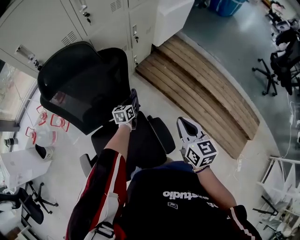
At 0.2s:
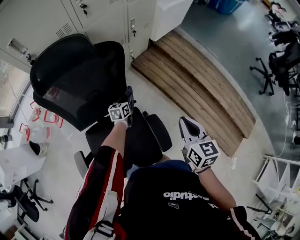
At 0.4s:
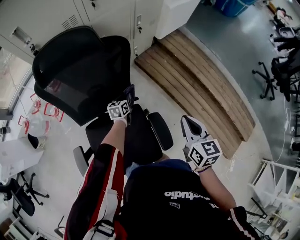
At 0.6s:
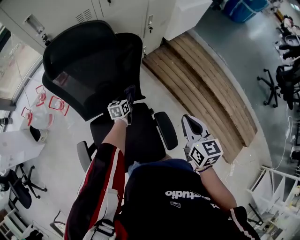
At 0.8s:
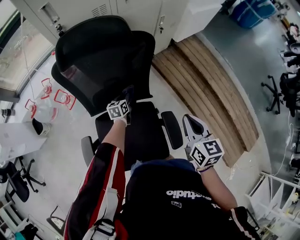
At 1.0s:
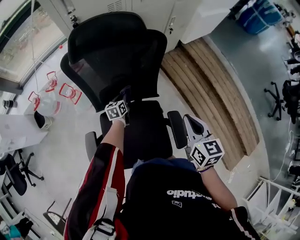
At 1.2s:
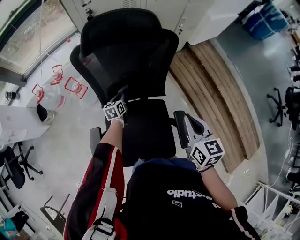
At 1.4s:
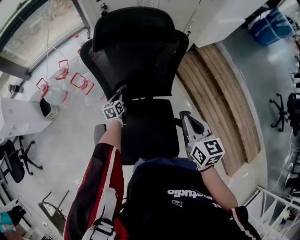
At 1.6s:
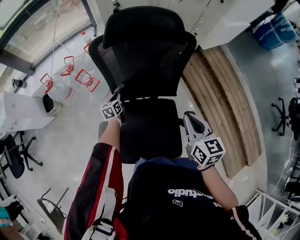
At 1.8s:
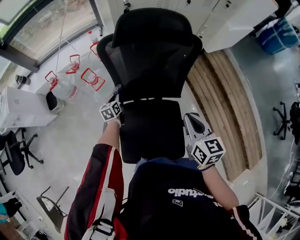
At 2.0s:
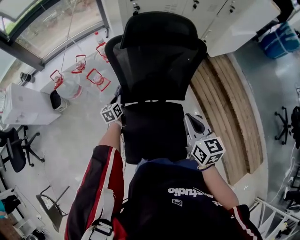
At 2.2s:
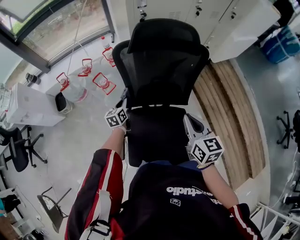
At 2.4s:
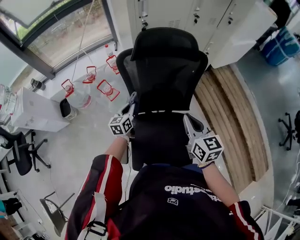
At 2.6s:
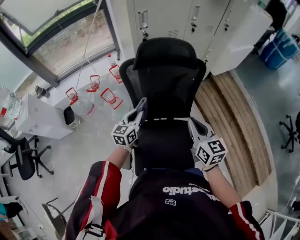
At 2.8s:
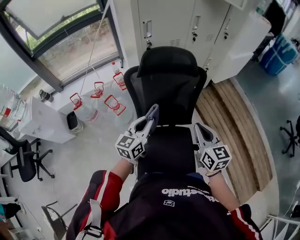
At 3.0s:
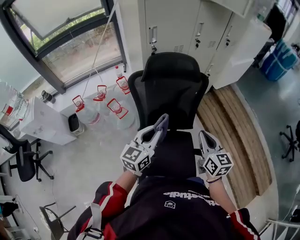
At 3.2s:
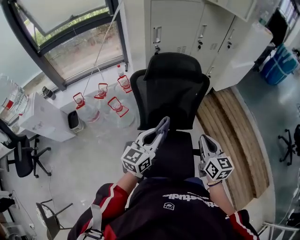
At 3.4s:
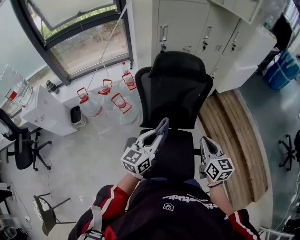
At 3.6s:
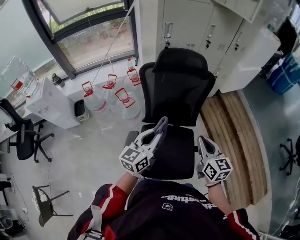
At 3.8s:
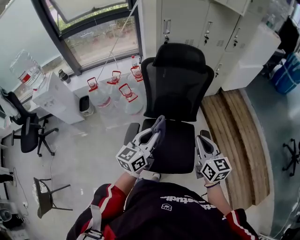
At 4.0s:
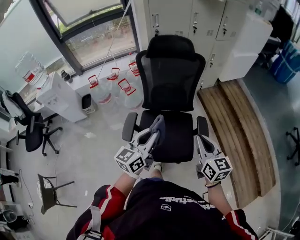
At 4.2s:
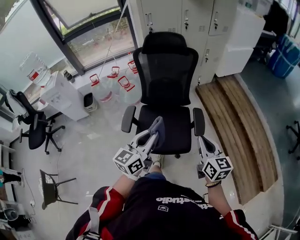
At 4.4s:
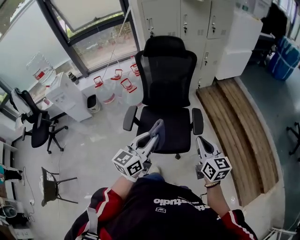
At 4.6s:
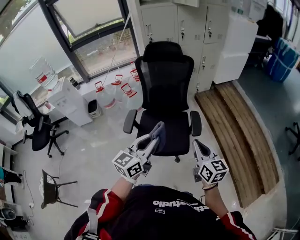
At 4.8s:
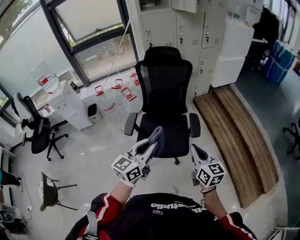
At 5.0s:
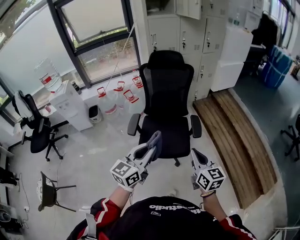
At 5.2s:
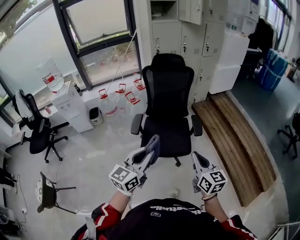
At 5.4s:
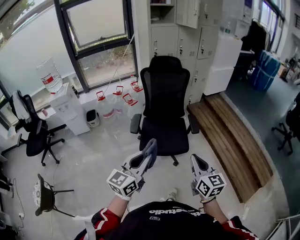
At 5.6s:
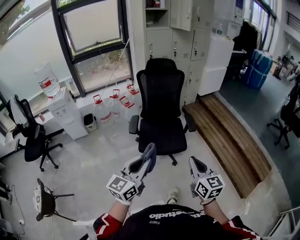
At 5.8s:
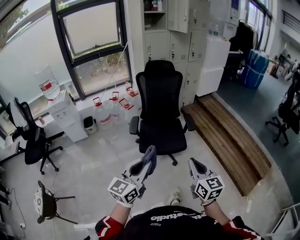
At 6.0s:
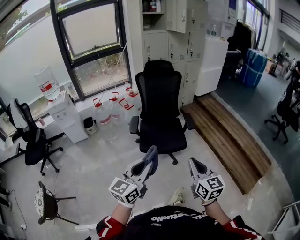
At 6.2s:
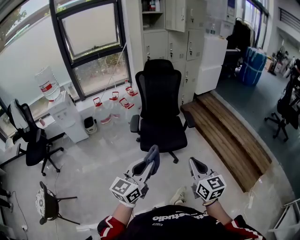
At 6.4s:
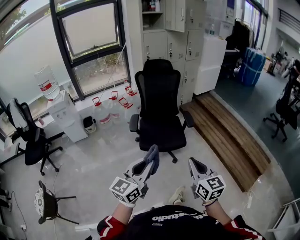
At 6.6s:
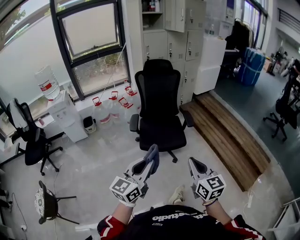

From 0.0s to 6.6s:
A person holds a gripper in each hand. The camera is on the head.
From 0.0s to 1.6s: The right gripper ends up about 20 cm from where it was. Meanwhile the left gripper changes place by approximately 40 cm, and rotates roughly 30 degrees.
From 1.6s to 3.2s: The left gripper is displaced upward and backward by roughly 40 cm, and tips its fingers upward by some 30 degrees, while the right gripper heads upward and backward, covering roughly 10 cm.
From 3.2s to 5.0s: The pair of grippers is taken backward, some 50 cm.
From 5.0s to 6.6s: Both grippers move backward, roughly 30 cm.

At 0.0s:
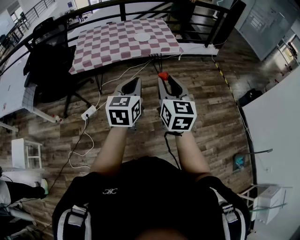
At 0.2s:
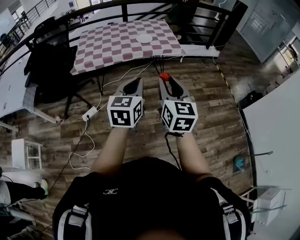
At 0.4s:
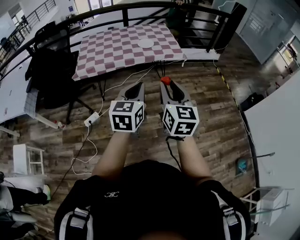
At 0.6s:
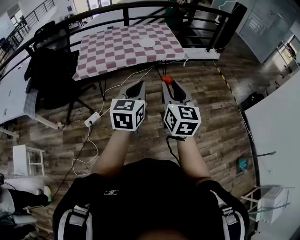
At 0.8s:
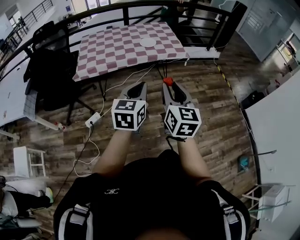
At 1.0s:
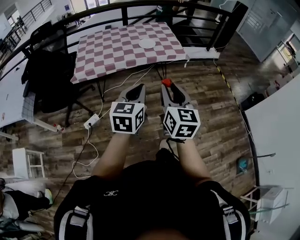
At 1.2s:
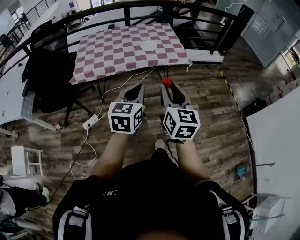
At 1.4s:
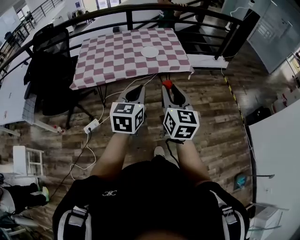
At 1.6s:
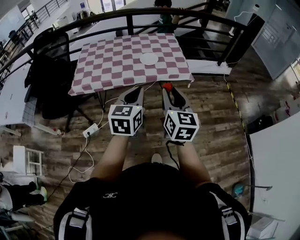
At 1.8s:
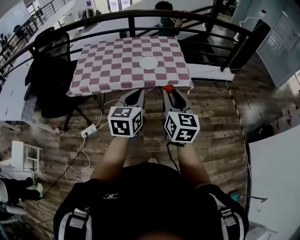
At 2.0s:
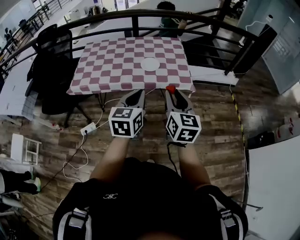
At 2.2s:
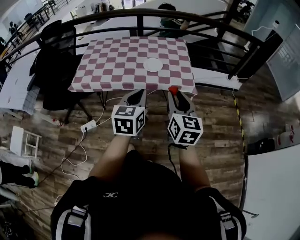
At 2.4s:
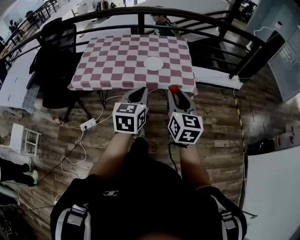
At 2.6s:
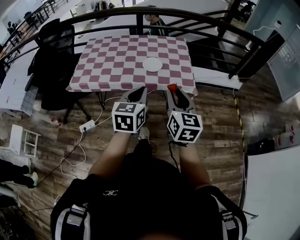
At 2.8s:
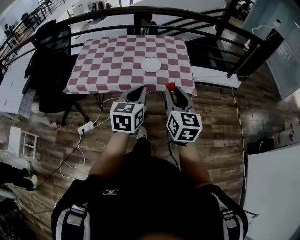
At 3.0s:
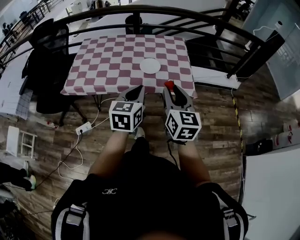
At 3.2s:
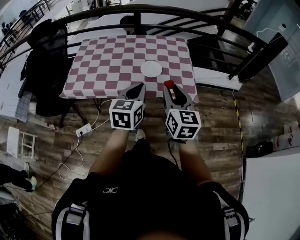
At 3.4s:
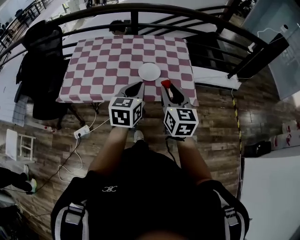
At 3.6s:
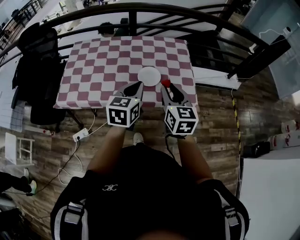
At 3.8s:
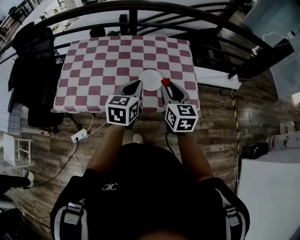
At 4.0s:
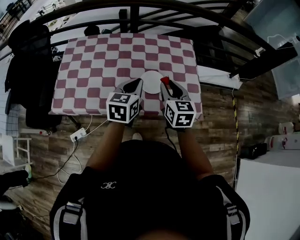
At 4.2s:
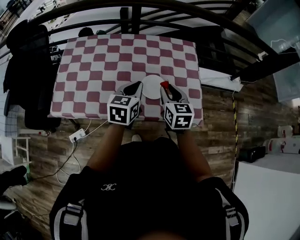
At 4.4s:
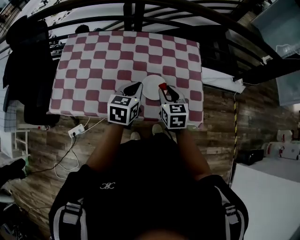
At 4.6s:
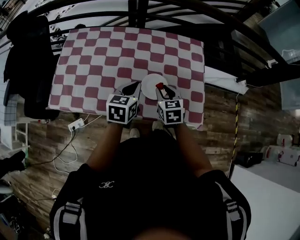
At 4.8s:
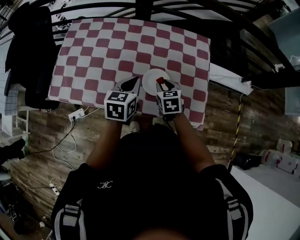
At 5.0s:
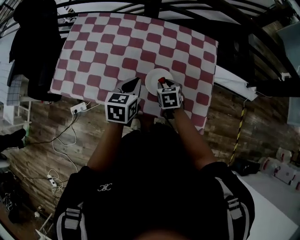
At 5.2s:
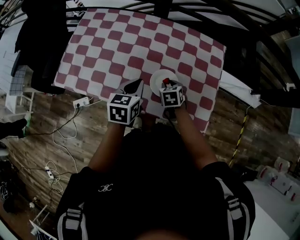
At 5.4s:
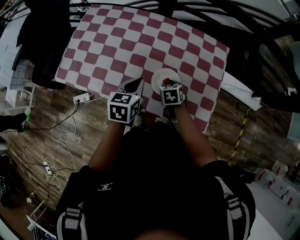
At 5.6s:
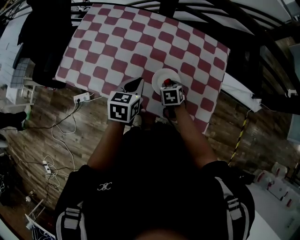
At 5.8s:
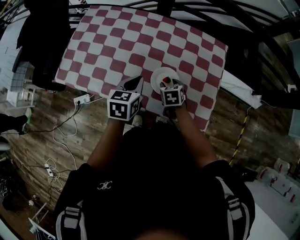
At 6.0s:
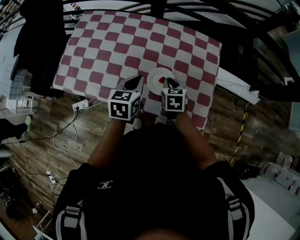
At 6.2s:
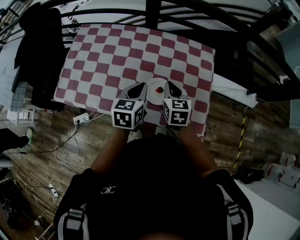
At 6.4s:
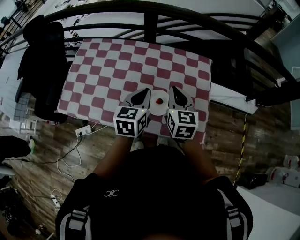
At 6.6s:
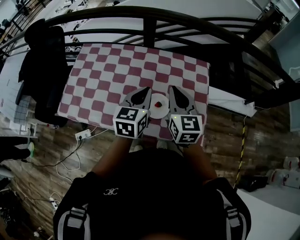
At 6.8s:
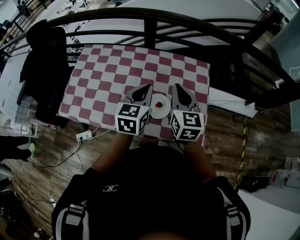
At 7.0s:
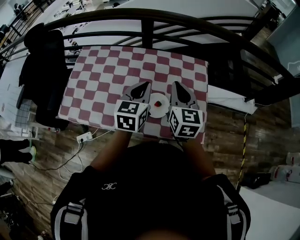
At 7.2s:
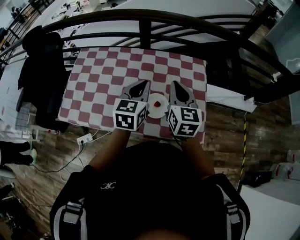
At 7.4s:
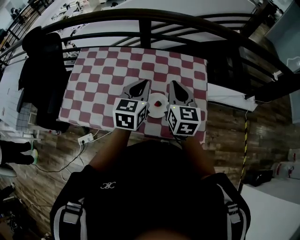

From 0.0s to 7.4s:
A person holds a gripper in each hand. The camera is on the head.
From 0.0s to 1.4s: The two grippers go about 20 cm forward.
From 1.4s to 3.0s: Both grippers travel together forward, some 20 cm.
From 3.0s to 4.4s: The right gripper moves forward and downward, approximately 35 cm, and rotates approximately 30 degrees; the left gripper heads forward, covering roughly 30 cm.
From 4.4s to 6.0s: The right gripper shifts about 10 cm downward and forward, and opens and closes again.
From 6.0s to 7.4s: The right gripper is displaced upward by some 20 cm, and points its fingers roughly 30 degrees further upward, while the left gripper goes about 10 cm upward.

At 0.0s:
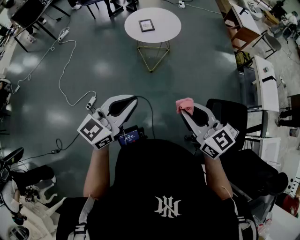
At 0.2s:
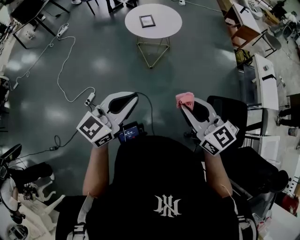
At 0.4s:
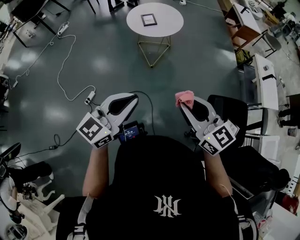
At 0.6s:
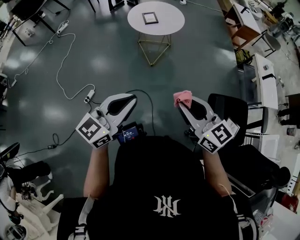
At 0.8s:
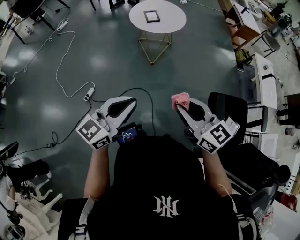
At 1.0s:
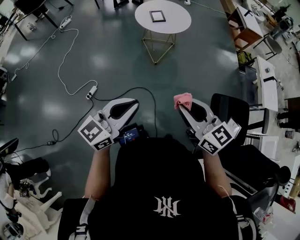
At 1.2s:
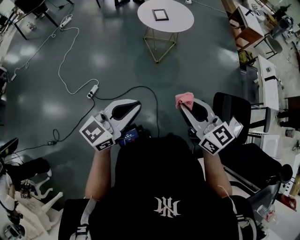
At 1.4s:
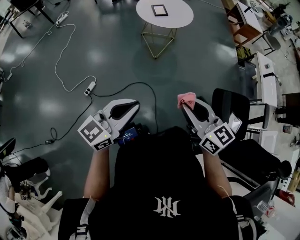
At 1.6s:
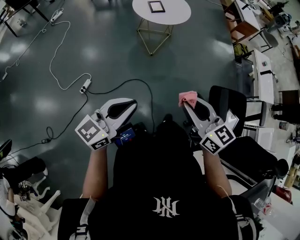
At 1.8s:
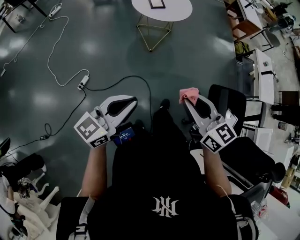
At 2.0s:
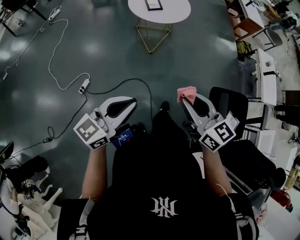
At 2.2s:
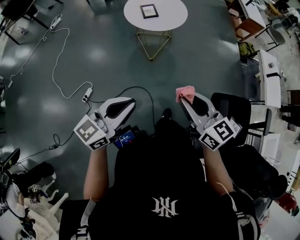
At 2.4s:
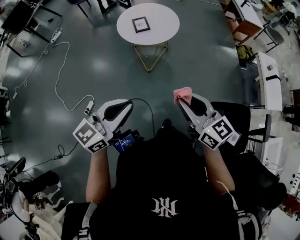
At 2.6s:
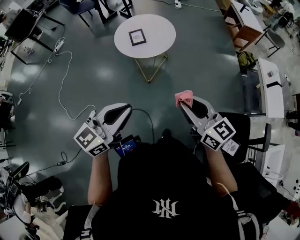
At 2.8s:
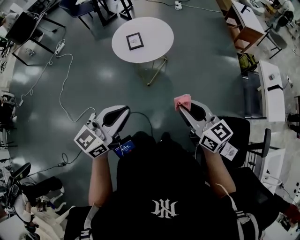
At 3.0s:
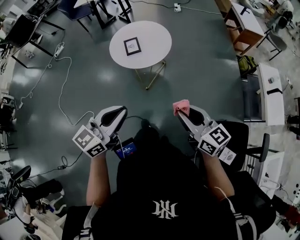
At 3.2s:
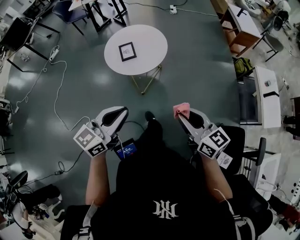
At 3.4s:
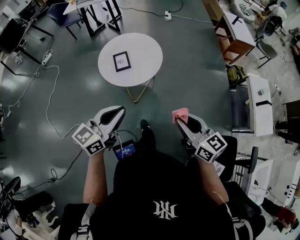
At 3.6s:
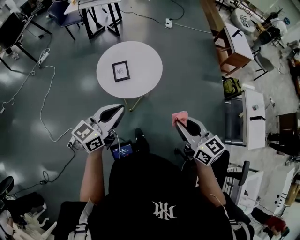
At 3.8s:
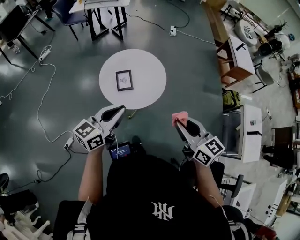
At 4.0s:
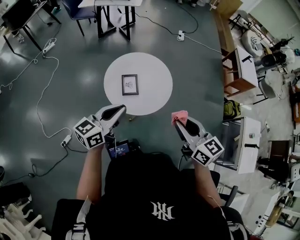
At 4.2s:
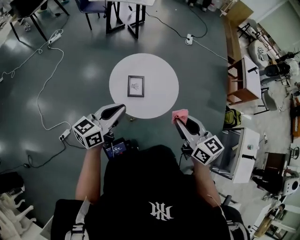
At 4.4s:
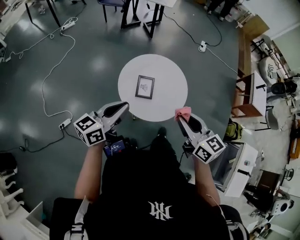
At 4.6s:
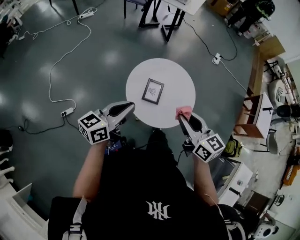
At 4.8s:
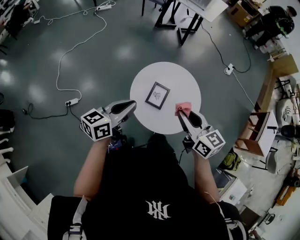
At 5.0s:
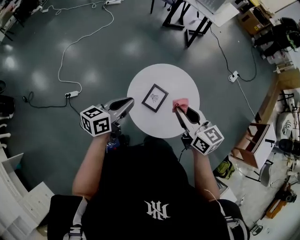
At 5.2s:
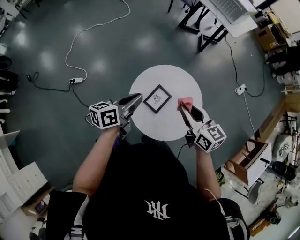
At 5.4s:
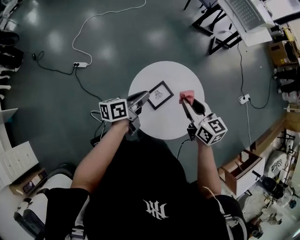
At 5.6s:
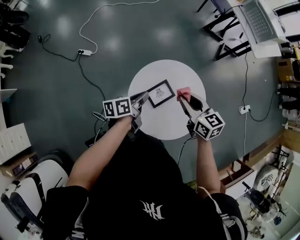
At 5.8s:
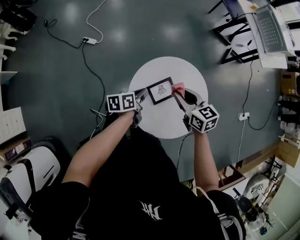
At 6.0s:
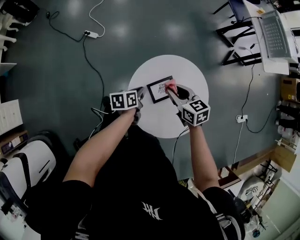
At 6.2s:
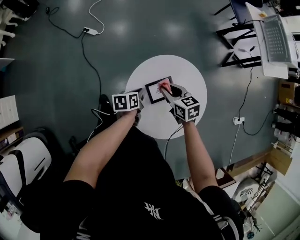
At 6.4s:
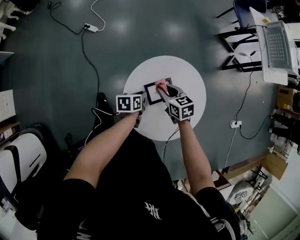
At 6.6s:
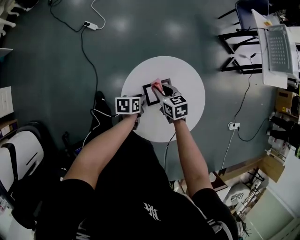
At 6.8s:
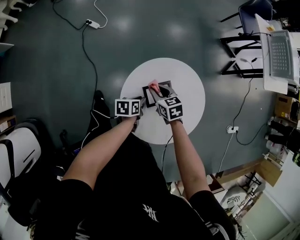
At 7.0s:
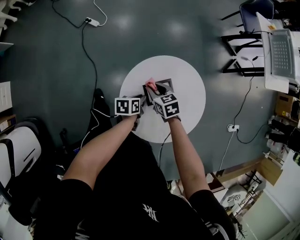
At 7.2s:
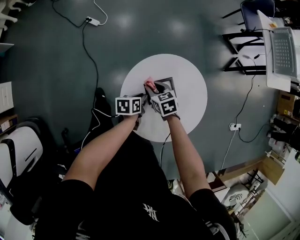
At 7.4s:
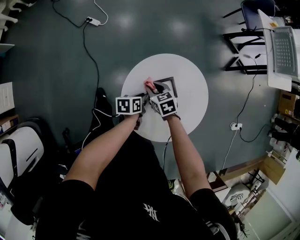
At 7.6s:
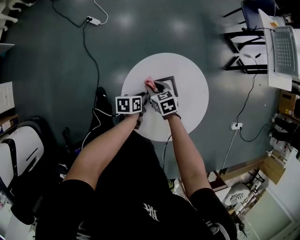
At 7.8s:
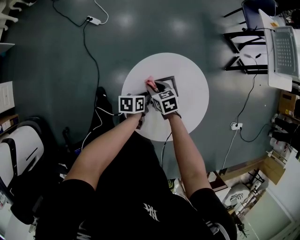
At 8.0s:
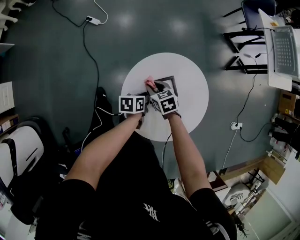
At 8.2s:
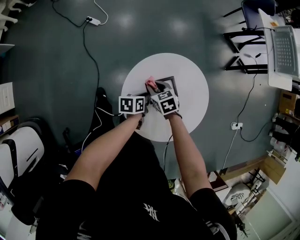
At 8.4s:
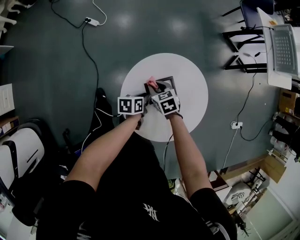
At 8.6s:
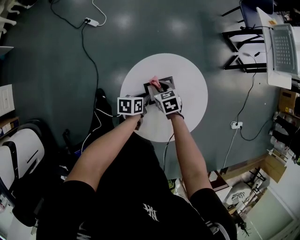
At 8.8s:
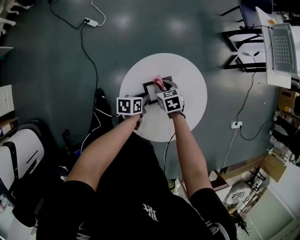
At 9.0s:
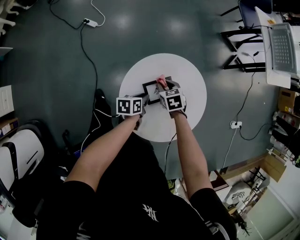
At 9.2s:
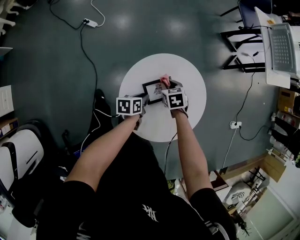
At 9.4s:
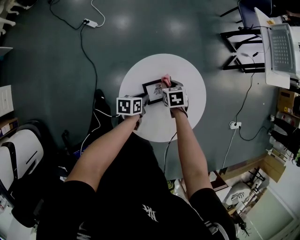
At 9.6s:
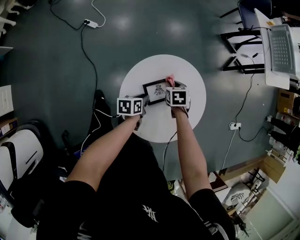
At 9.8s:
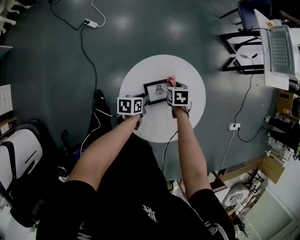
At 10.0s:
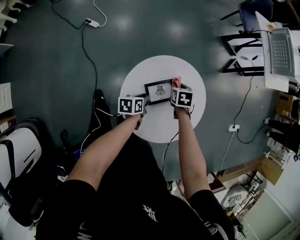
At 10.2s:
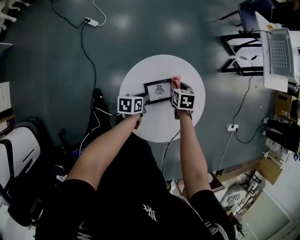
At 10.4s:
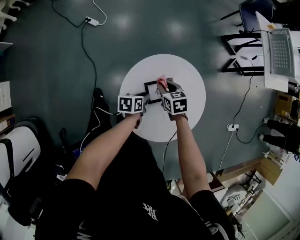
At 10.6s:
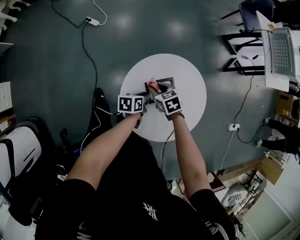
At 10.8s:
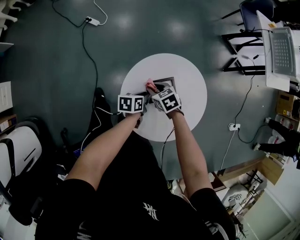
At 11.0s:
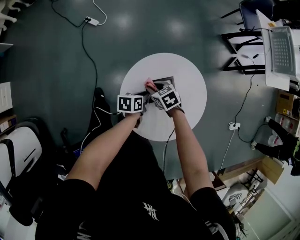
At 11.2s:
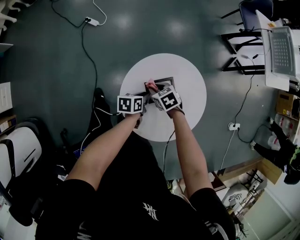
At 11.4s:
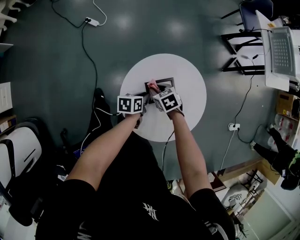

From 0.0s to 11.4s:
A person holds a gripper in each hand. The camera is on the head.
From 0.0s to 1.4s: The right gripper shifts about 15 cm to the left and backward. The left gripper shifts approximately 15 cm to the left, backward and downward.
From 1.4s to 2.8s: Both grippers travel together forward and to the right, approximately 35 cm.
From 2.8s to 4.2s: The two grippers go about 40 cm forward. The left gripper swivels roughly 20 degrees.
From 4.2s to 5.6s: The right gripper shifts by roughly 35 cm, and rotates about 60 degrees. Meanwhile the left gripper heads downward, covering approximately 20 cm, and swivels roughly 80 degrees.
From 5.6s to 7.2s: The right gripper travels downward and to the left by approximately 25 cm, and rotates some 30 degrees; the left gripper travels downward by some 20 cm, and changes its angle by about 20 degrees.
From 7.2s to 8.6s: The grippers move only a little.
From 8.6s to 10.0s: The right gripper goes some 10 cm to the right, and changes its angle by about 30 degrees.
From 10.0s to 11.4s: The right gripper shifts by approximately 15 cm, and turns by roughly 30 degrees.
